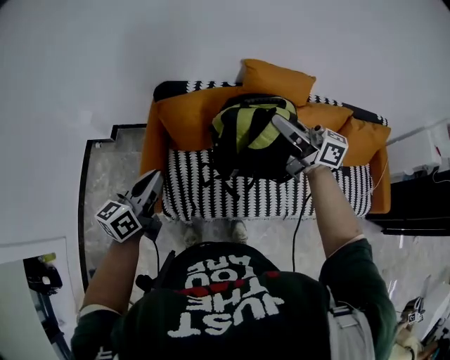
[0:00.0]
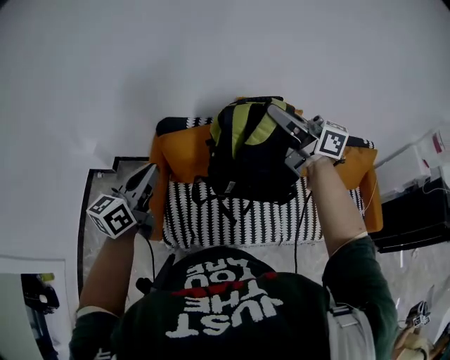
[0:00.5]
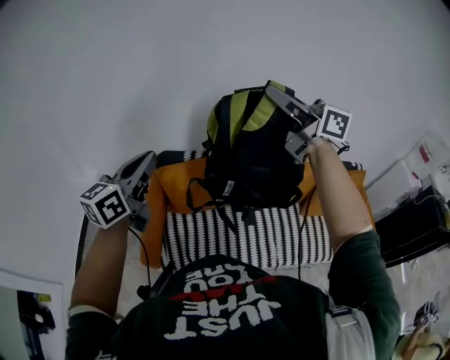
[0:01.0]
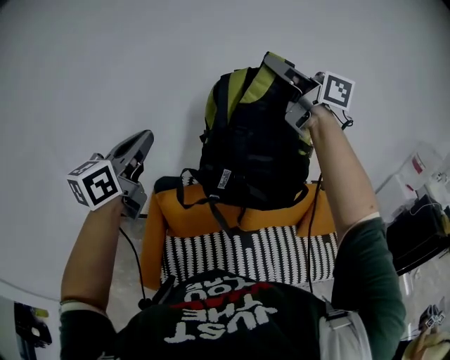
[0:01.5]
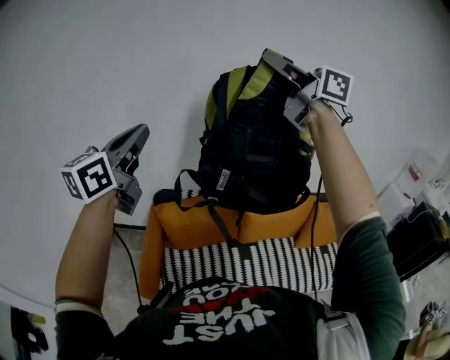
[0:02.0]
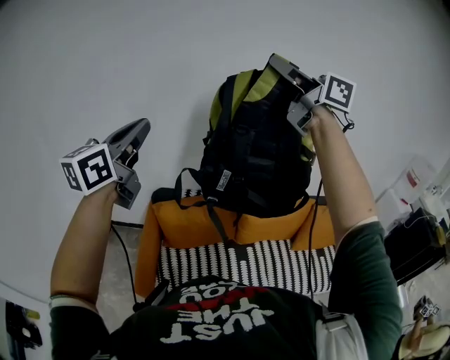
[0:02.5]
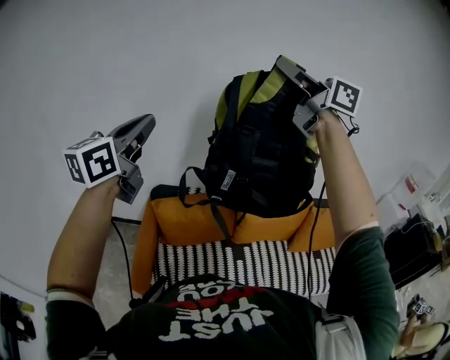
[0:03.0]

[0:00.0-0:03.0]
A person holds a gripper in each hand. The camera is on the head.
0:00.0 to 0:01.5: The two grippers go some 40 cm upward. The right gripper swivels some 30 degrees; the left gripper swivels some 30 degrees.
0:01.5 to 0:03.0: There are only small adjustments of the grippers.

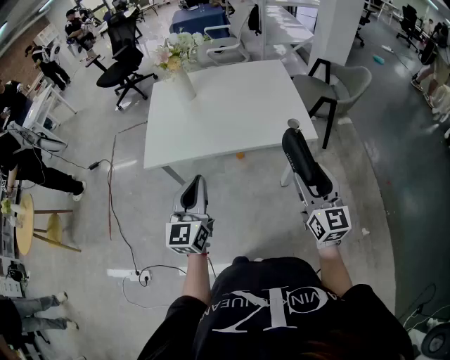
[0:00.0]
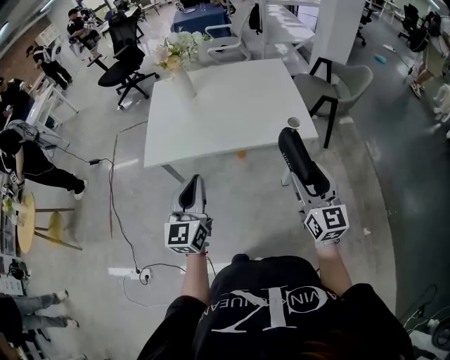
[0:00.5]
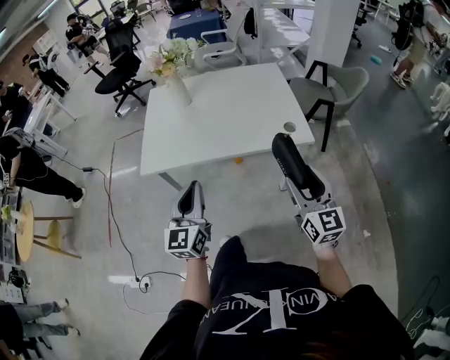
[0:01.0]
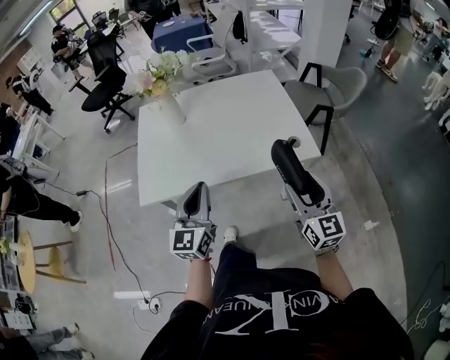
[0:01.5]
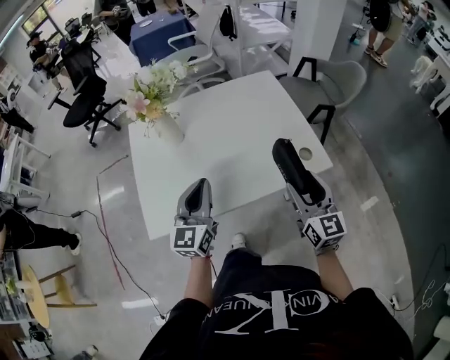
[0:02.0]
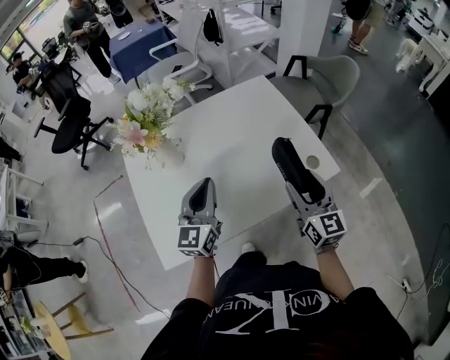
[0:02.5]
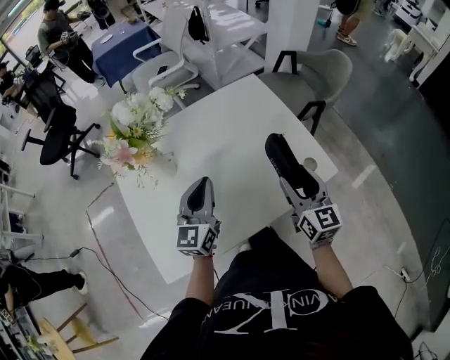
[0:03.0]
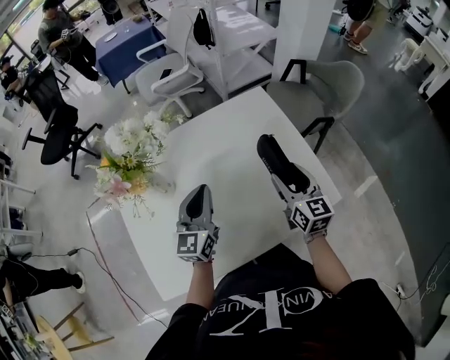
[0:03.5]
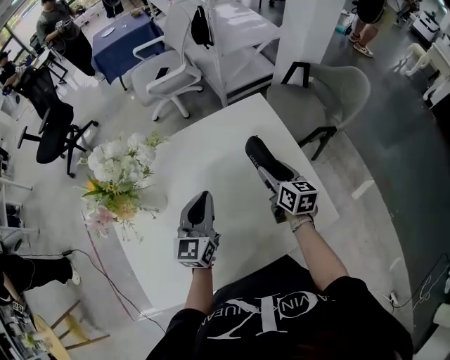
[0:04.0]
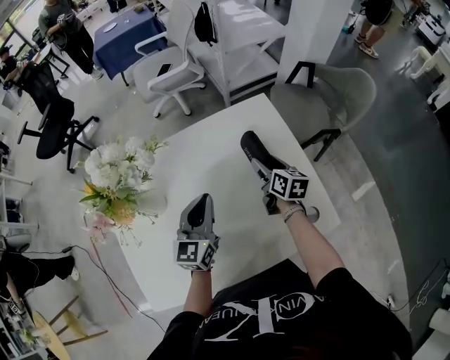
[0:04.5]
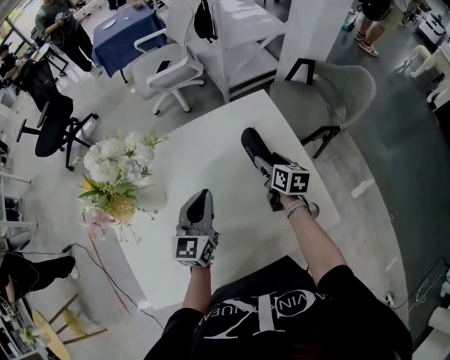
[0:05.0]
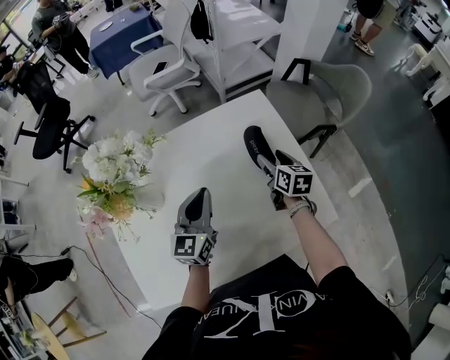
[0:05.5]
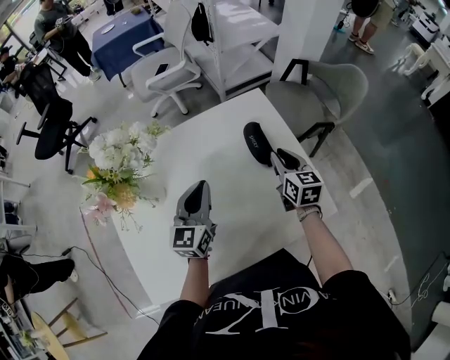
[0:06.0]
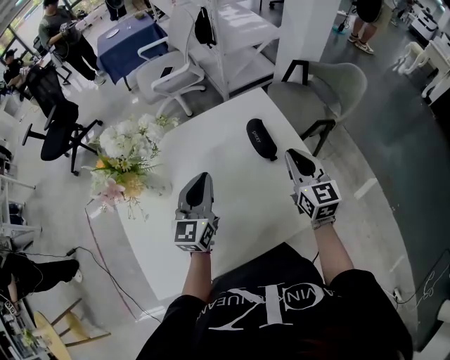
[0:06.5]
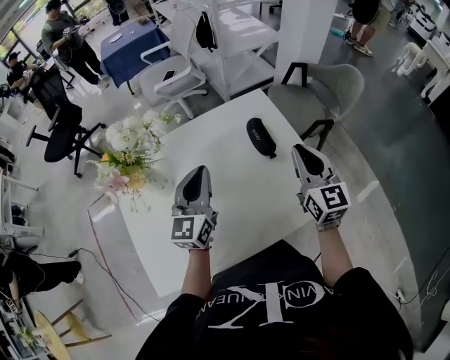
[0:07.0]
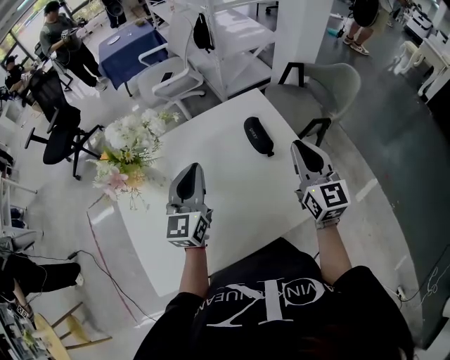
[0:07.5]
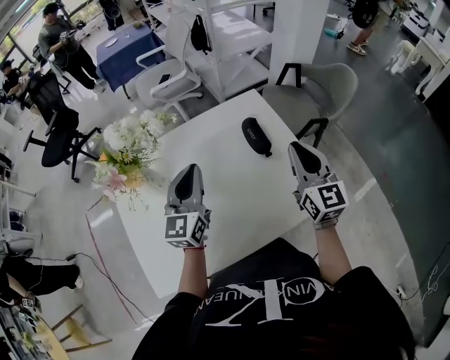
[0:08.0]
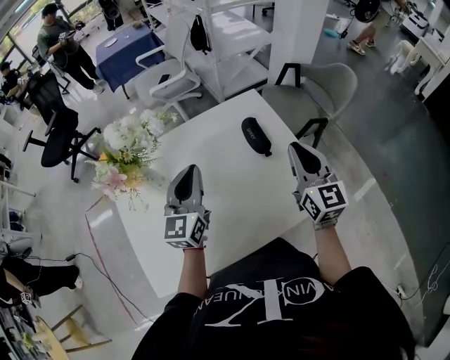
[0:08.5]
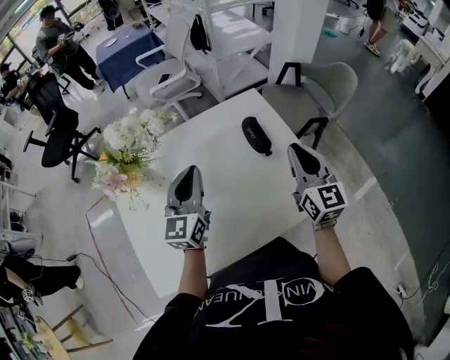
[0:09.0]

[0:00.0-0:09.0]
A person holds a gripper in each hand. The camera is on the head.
0:00.0 to 0:02.0: The two grippers go roughly 20 cm forward.
0:02.0 to 0:04.5: The left gripper travels forward by approximately 25 cm. The right gripper shifts approximately 40 cm forward and downward, and changes its angle by roughly 40 degrees.
0:04.5 to 0:07.0: The left gripper heads upward, covering roughly 10 cm, while the right gripper moves upward and backward, approximately 25 cm, rotates roughly 40 degrees, and closes up.
0:07.0 to 0:09.0: The grippers stay close to where they were, moving slightly.

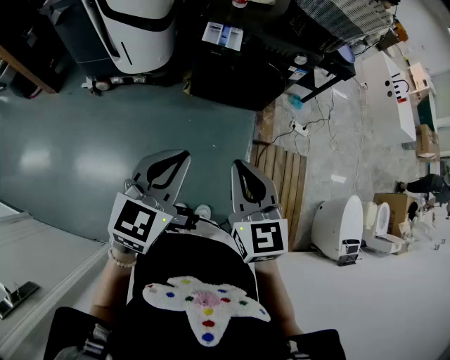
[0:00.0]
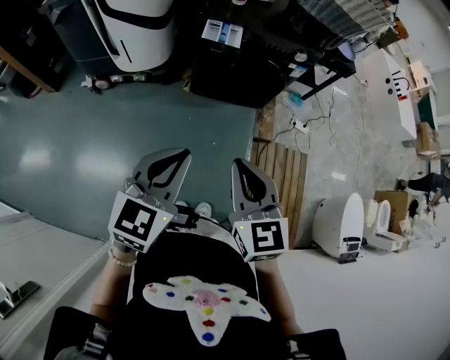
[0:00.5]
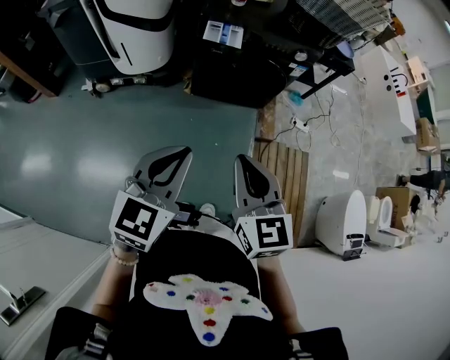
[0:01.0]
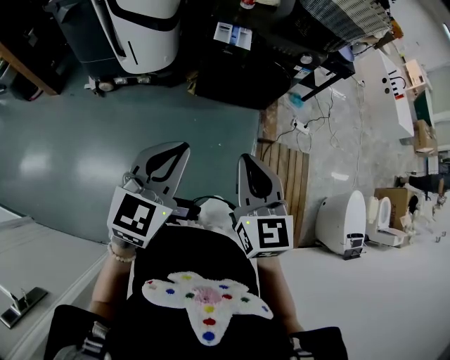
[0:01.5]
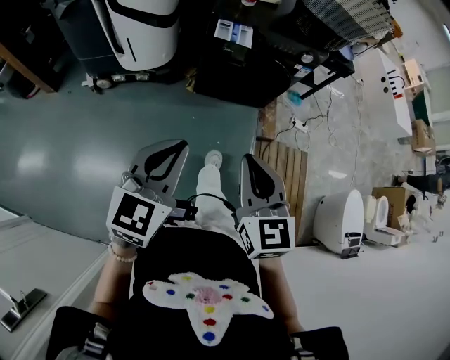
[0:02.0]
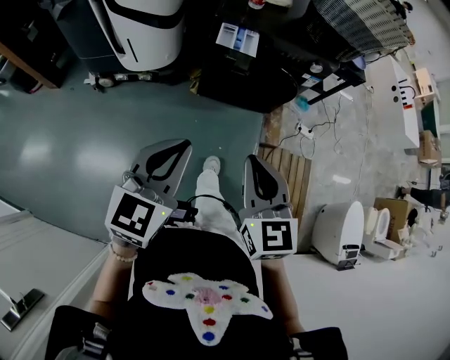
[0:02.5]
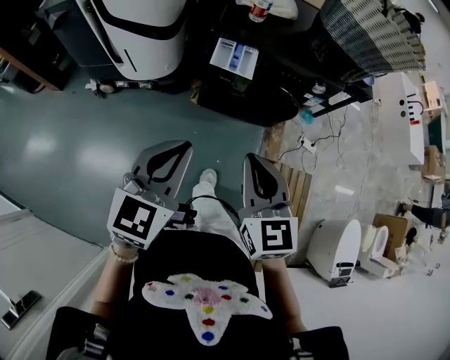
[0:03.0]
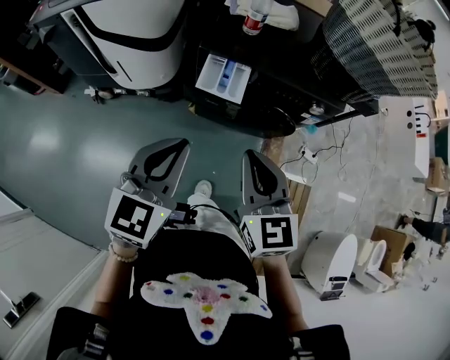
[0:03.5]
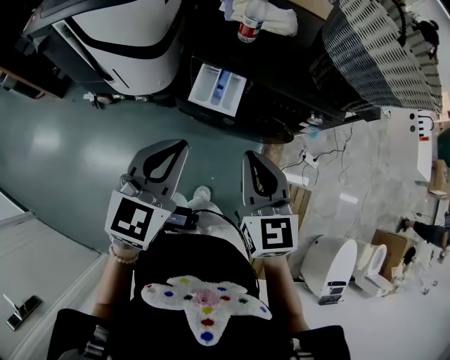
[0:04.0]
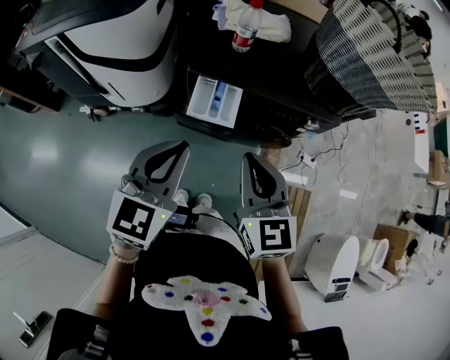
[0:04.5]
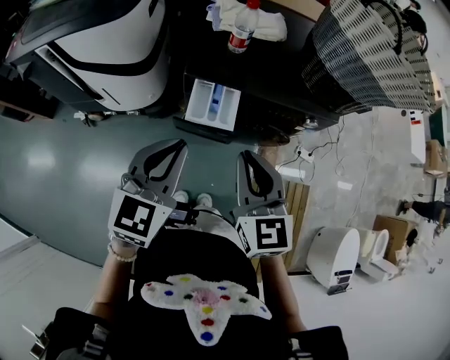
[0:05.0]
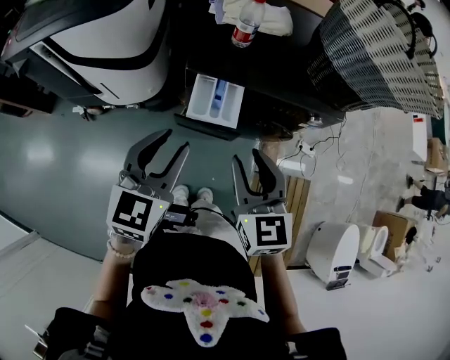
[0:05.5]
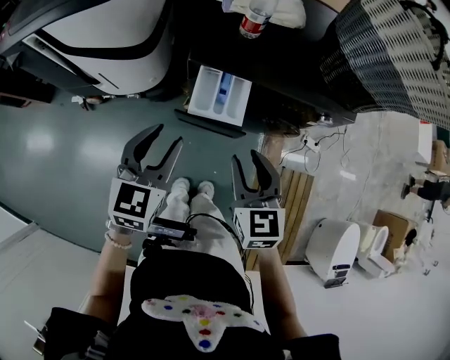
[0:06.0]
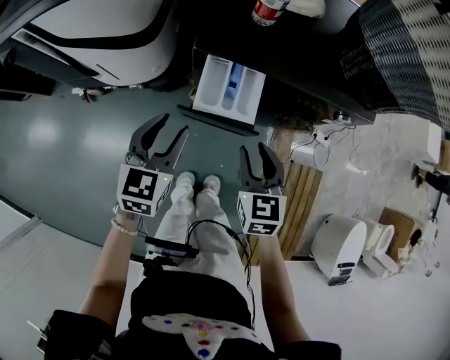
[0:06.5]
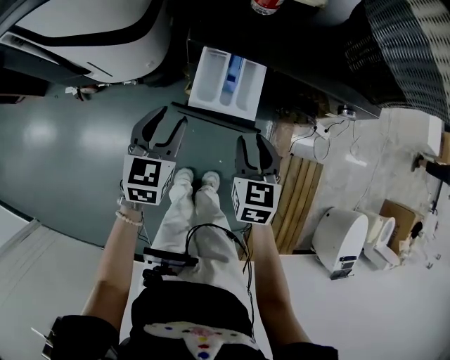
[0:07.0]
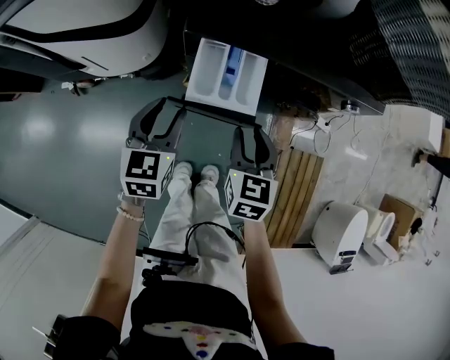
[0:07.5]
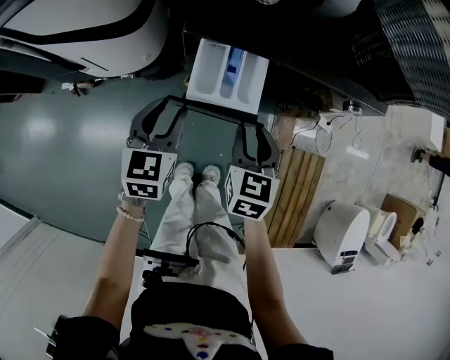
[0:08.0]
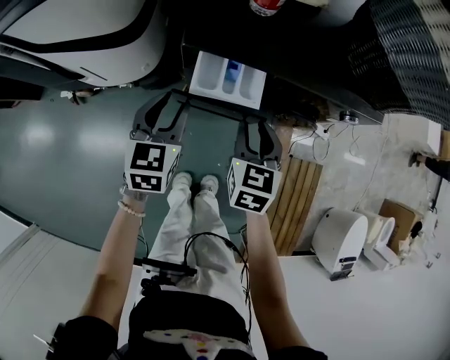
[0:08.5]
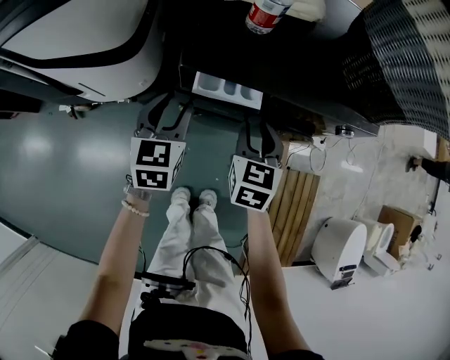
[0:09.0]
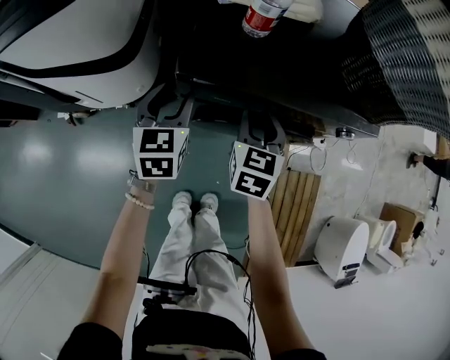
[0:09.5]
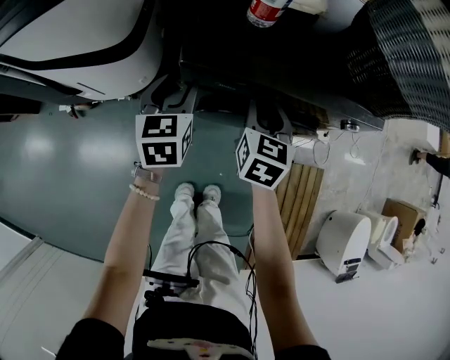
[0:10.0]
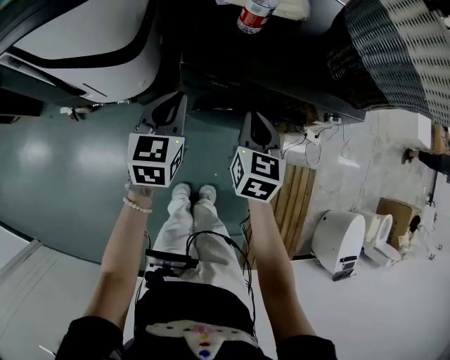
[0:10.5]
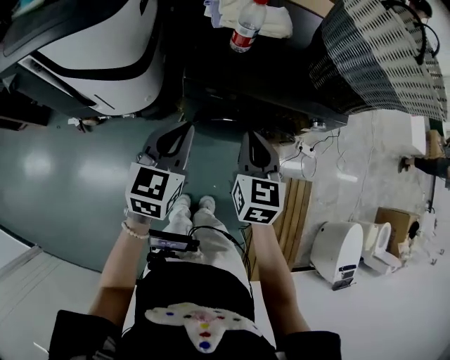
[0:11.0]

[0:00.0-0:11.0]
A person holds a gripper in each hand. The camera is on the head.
0:00.0 to 0:02.0: The left gripper is displaced to the left by approximately 5 cm.
0:02.0 to 0:03.5: Both grippers move forward, roughly 30 cm.
0:03.5 to 0:05.5: The grippers both shift forward by approximately 10 cm. The right gripper opens up. Meanwhile the left gripper opens its fingers.
0:05.5 to 0:07.5: The two grippers go about 20 cm downward. The right gripper changes its angle by roughly 20 degrees.
0:07.5 to 0:09.0: Both grippers move forward, about 10 cm.
0:09.0 to 0:11.0: Both grippers move upward and backward, some 15 cm. The right gripper closes up. Meanwhile the left gripper closes.

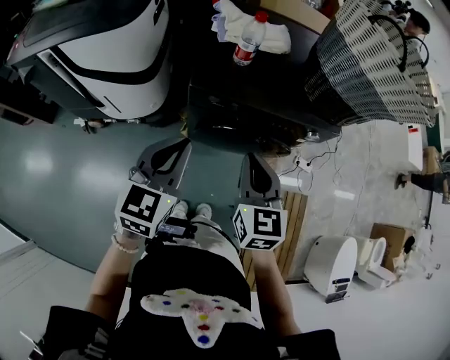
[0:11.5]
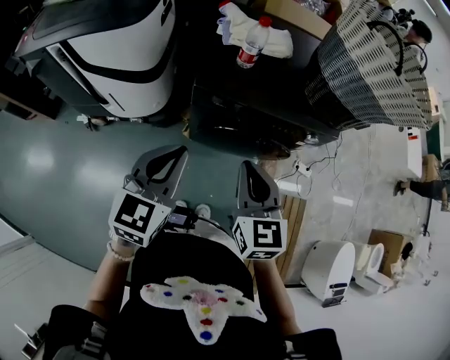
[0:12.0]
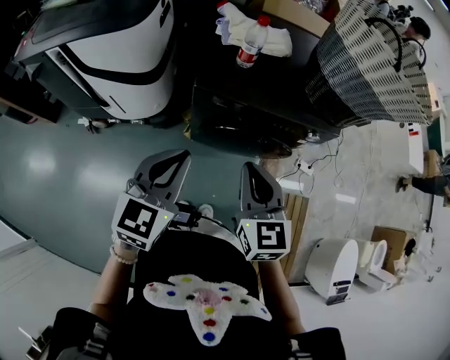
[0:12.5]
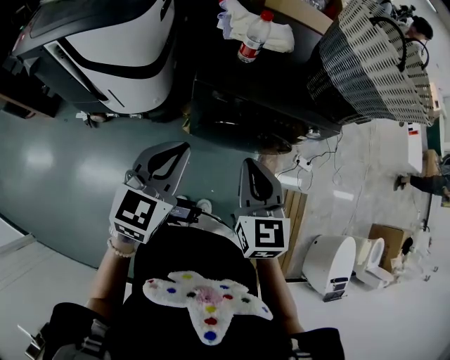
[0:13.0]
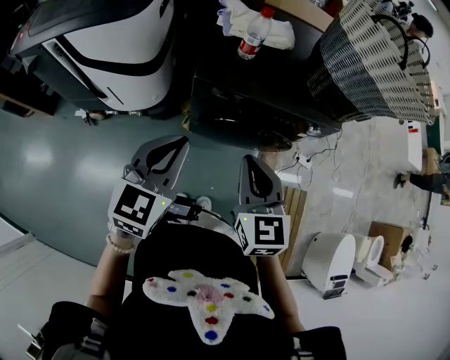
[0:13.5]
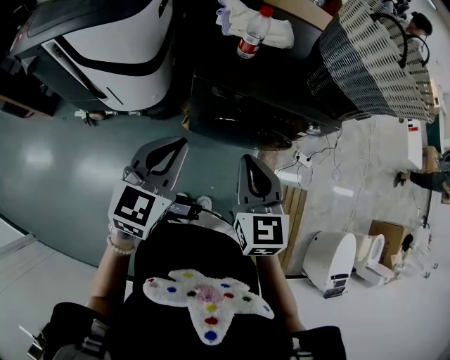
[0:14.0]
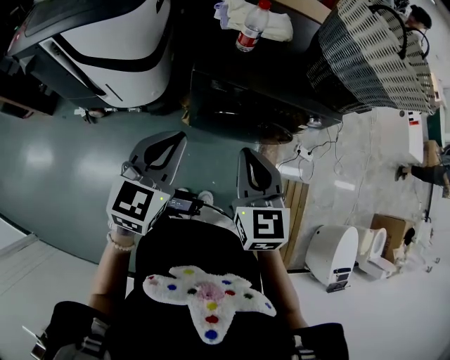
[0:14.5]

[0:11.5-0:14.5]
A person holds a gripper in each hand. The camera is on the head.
0:11.5 to 0:13.0: The grippers make only small movements.
0:13.0 to 0:14.5: Both grippers stay put.
